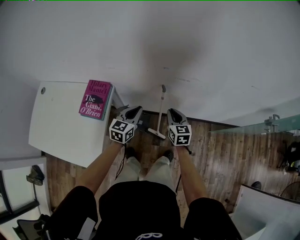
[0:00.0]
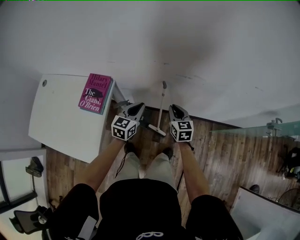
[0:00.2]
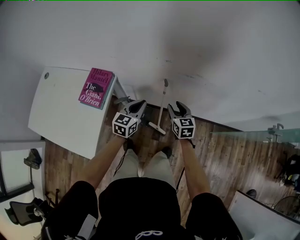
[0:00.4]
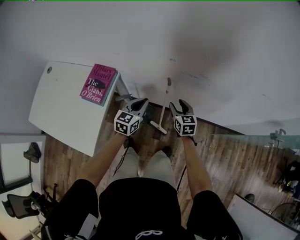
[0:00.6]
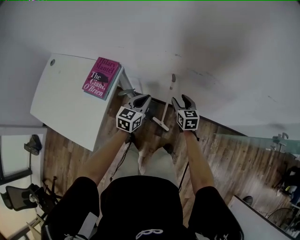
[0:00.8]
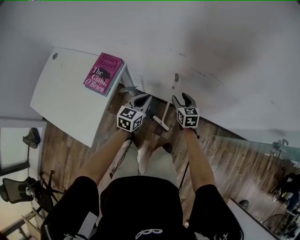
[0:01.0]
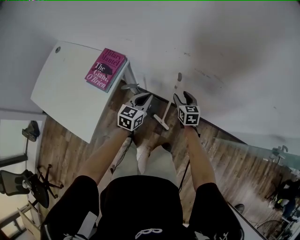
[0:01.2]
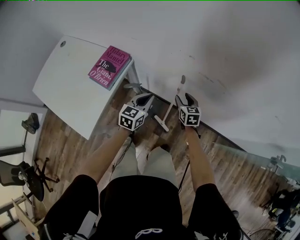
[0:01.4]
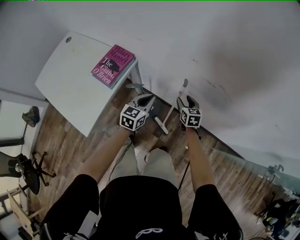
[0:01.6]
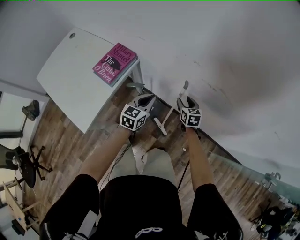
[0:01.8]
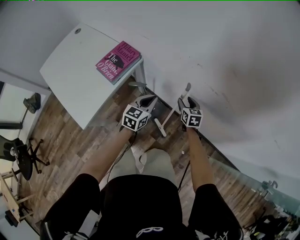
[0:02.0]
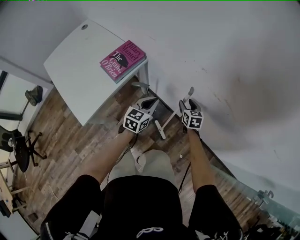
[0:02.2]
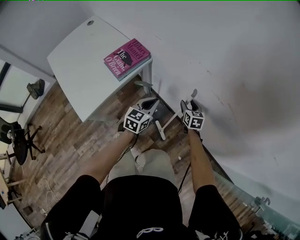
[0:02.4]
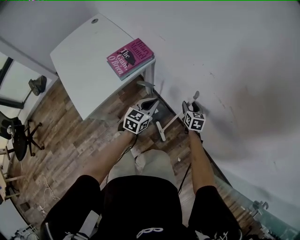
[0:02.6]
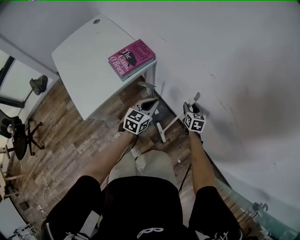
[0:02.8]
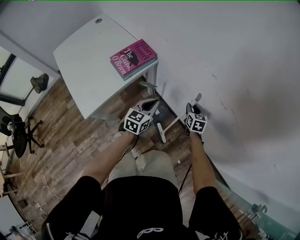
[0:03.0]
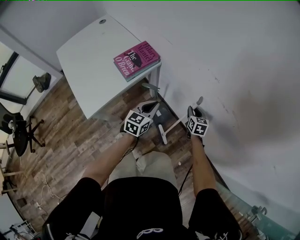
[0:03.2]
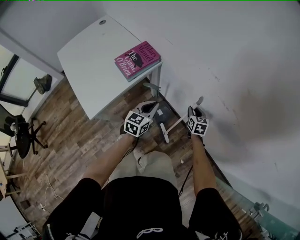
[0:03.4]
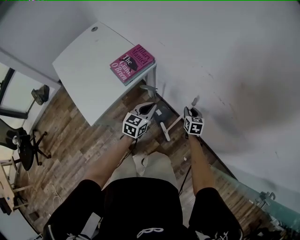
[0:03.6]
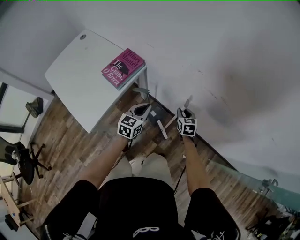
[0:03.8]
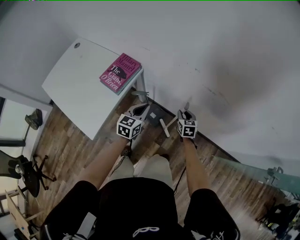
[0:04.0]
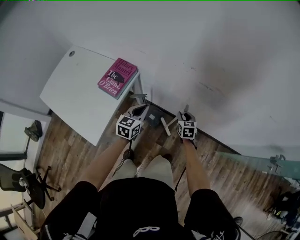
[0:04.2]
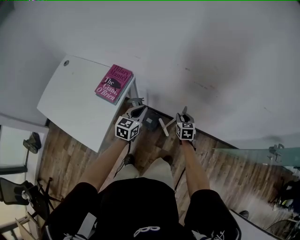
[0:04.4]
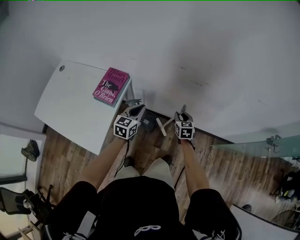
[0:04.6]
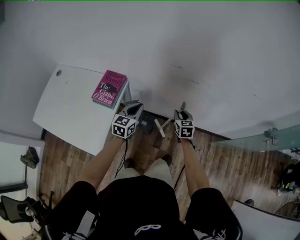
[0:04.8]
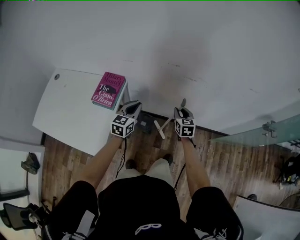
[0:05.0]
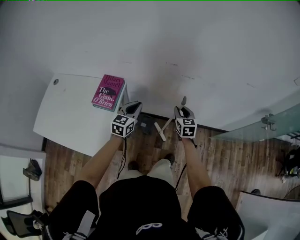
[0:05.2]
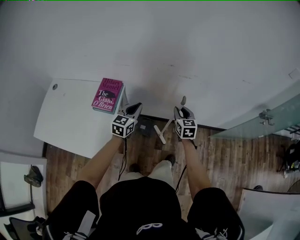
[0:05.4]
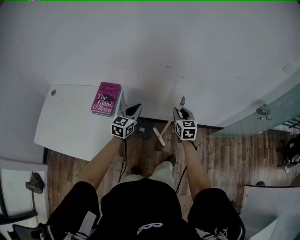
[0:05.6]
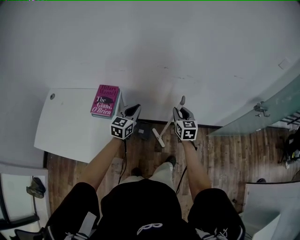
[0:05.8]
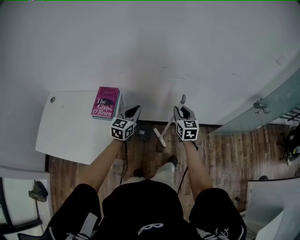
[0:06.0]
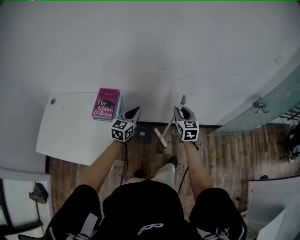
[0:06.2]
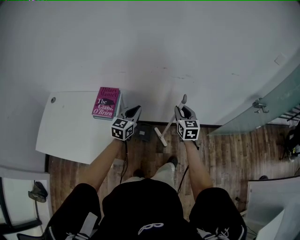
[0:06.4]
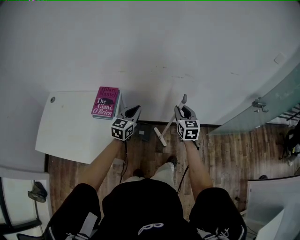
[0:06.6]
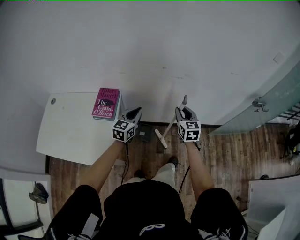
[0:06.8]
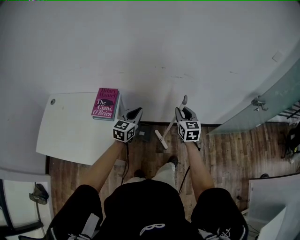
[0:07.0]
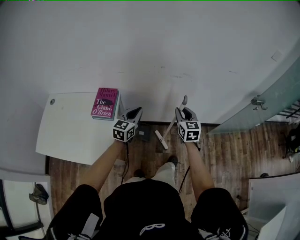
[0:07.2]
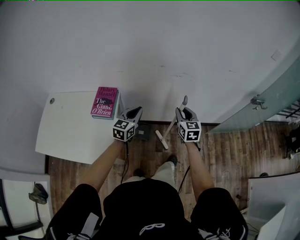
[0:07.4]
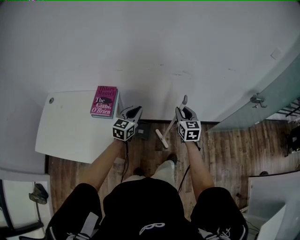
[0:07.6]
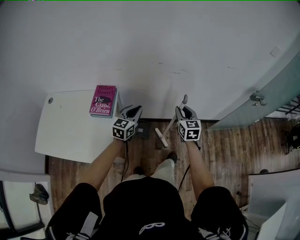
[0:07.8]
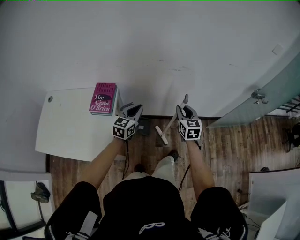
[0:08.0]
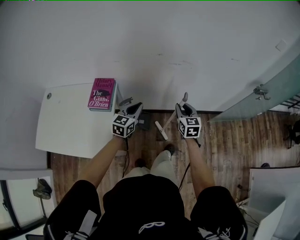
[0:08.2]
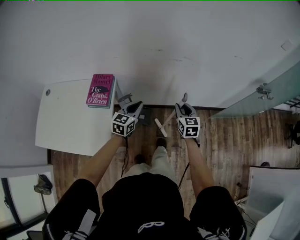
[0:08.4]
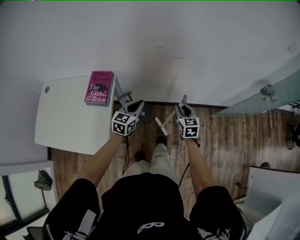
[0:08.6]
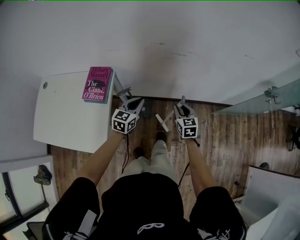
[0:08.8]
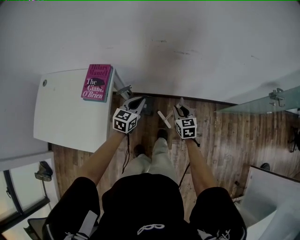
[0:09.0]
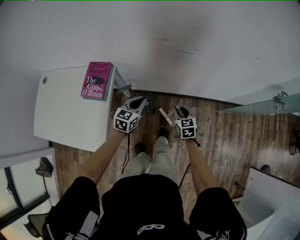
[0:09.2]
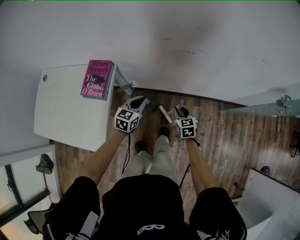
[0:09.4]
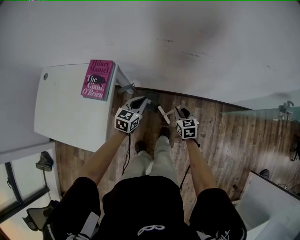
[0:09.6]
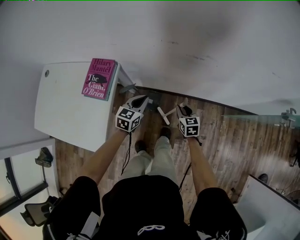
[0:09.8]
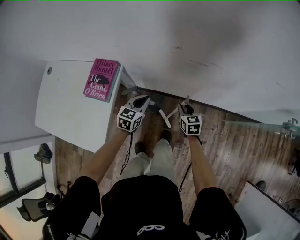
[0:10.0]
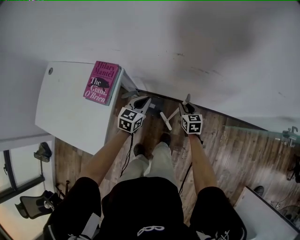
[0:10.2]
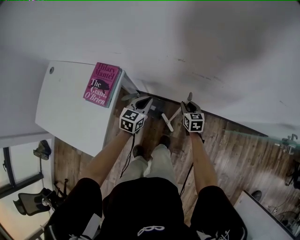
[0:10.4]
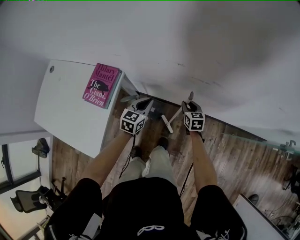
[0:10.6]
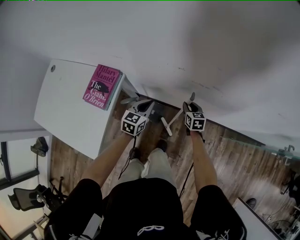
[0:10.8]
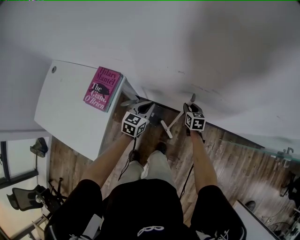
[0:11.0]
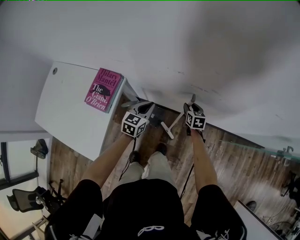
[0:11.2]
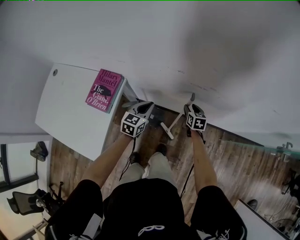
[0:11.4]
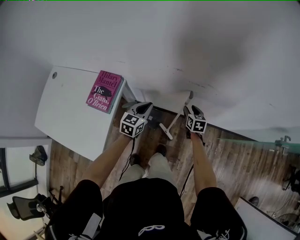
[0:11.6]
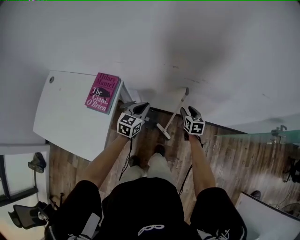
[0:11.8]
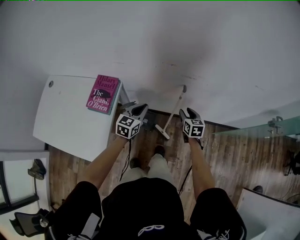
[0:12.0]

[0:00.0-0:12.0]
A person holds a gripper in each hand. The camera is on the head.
0:00.0 to 0:01.6: The right gripper heads downward and forward, covering about 15 cm, changes its angle by approximately 20 degrees, and opens its fingers, while the left gripper travels downward by about 5 cm.
0:01.6 to 0:03.0: The right gripper changes place by approximately 5 cm, and closes up.
0:03.0 to 0:04.4: The left gripper is displaced upward by roughly 10 cm, and turns by approximately 20 degrees, while the right gripper is displaced backward and upward by some 15 cm.
0:04.4 to 0:06.0: The left gripper is displaced upward by approximately 10 cm, and changes its angle by about 20 degrees. The right gripper travels upward and backward by some 25 cm, and changes its angle by roughly 20 degrees.
0:06.0 to 0:07.6: There are only small adjustments of the grippers.
0:07.6 to 0:09.0: The right gripper goes about 20 cm downward, while the left gripper is displaced downward and forward by about 15 cm.
0:09.0 to 0:10.4: The right gripper moves forward and downward, some 20 cm. Meanwhile the left gripper travels forward and downward by some 15 cm.
0:10.4 to 0:12.0: Both grippers move upward and backward, roughly 10 cm.

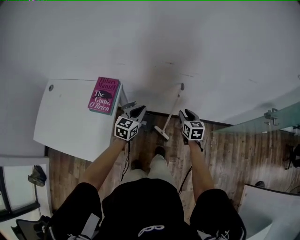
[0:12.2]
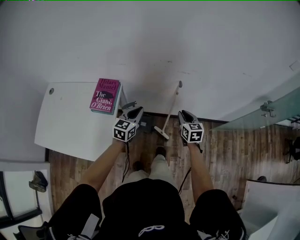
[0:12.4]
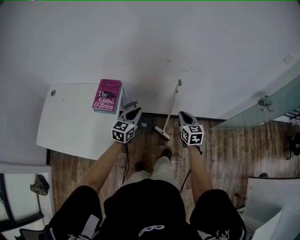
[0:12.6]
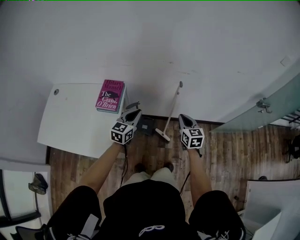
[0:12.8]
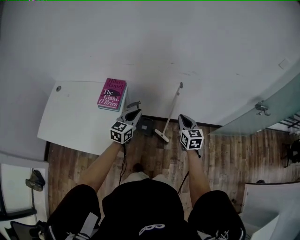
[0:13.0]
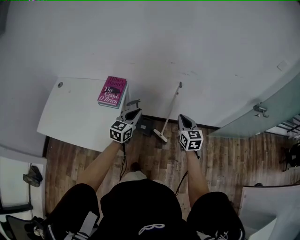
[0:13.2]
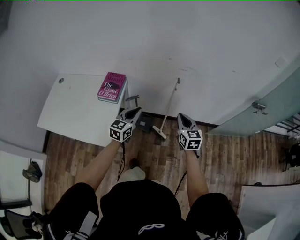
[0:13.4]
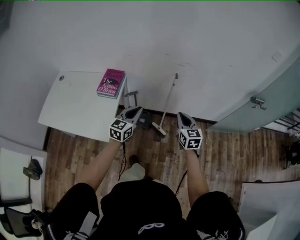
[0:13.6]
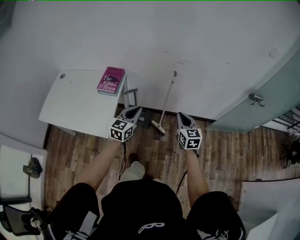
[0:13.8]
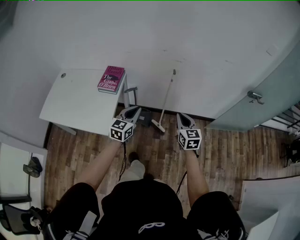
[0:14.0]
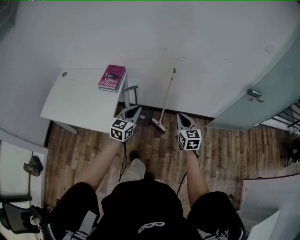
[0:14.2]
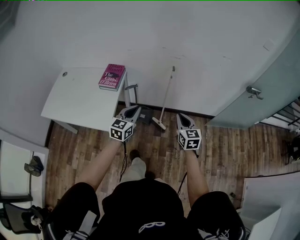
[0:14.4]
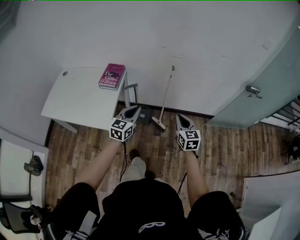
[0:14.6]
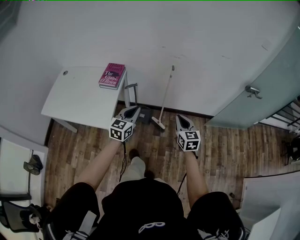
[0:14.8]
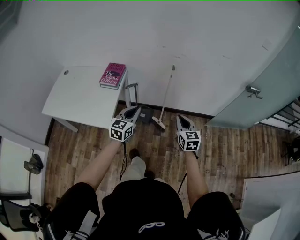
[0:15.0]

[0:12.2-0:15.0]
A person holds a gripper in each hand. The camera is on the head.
0:12.2 to 0:13.6: The two grippers go some 25 cm backward and upward. The right gripper closes up.
0:13.6 to 0:15.0: Both grippers move backward, about 10 cm.

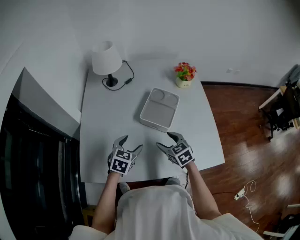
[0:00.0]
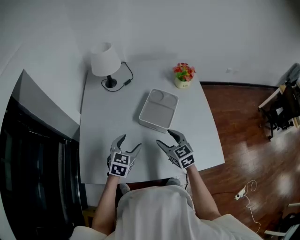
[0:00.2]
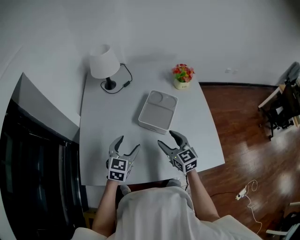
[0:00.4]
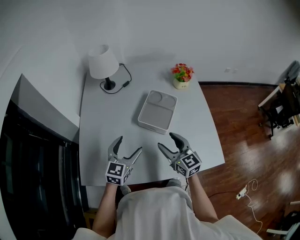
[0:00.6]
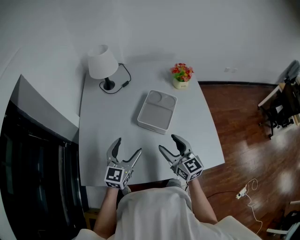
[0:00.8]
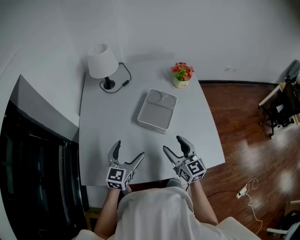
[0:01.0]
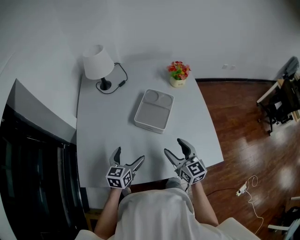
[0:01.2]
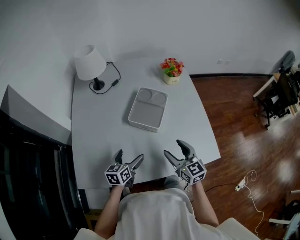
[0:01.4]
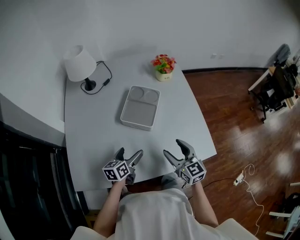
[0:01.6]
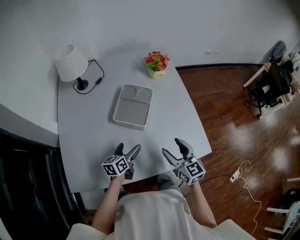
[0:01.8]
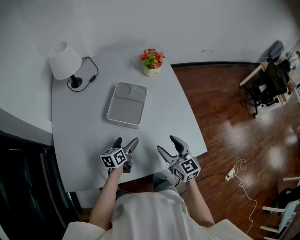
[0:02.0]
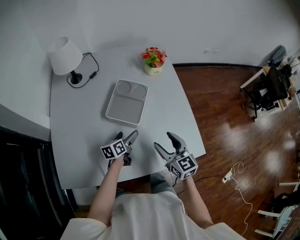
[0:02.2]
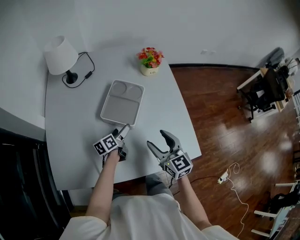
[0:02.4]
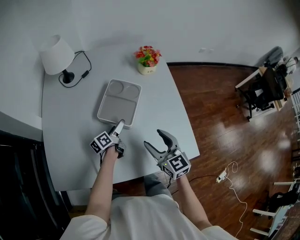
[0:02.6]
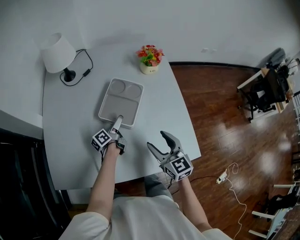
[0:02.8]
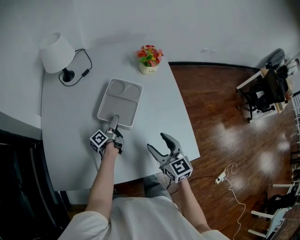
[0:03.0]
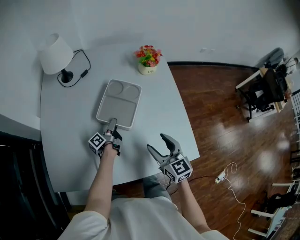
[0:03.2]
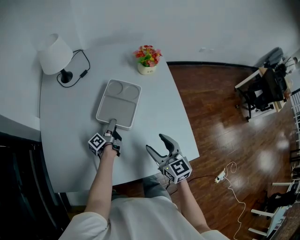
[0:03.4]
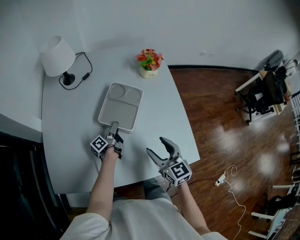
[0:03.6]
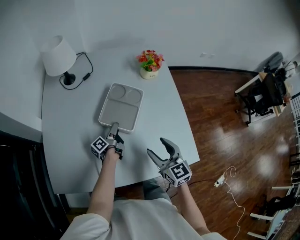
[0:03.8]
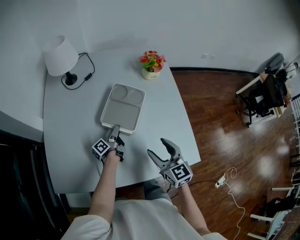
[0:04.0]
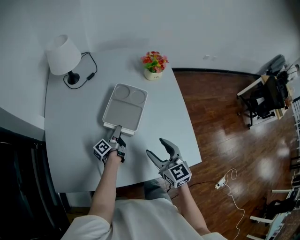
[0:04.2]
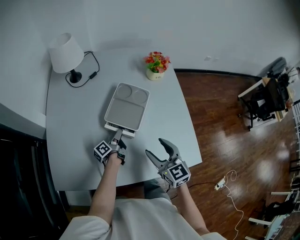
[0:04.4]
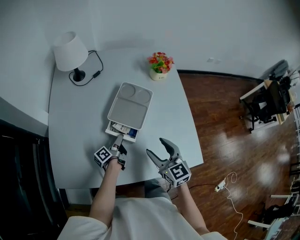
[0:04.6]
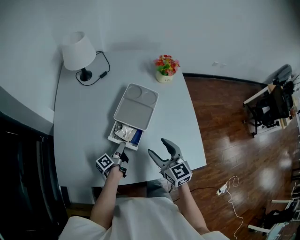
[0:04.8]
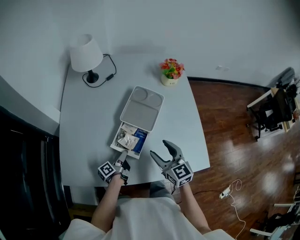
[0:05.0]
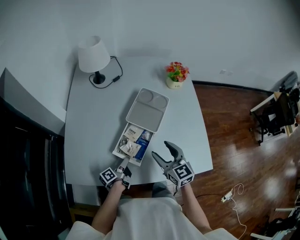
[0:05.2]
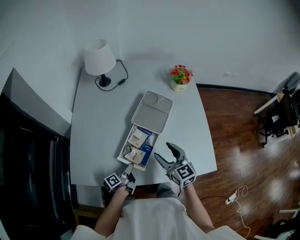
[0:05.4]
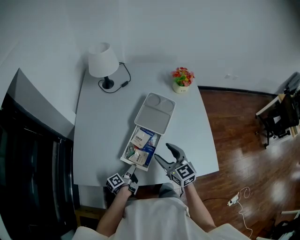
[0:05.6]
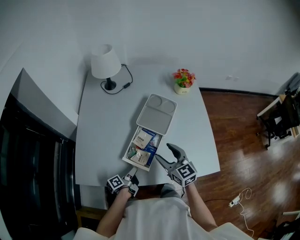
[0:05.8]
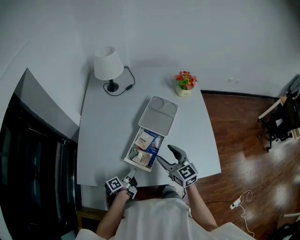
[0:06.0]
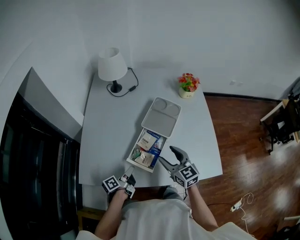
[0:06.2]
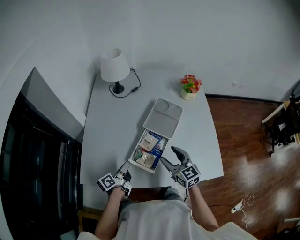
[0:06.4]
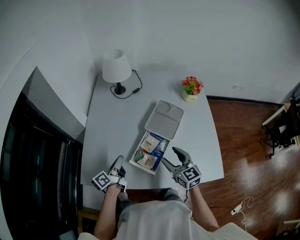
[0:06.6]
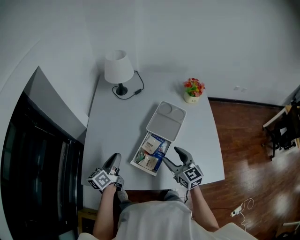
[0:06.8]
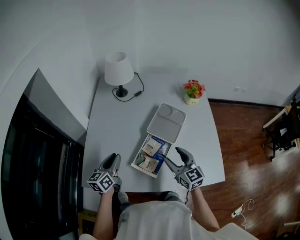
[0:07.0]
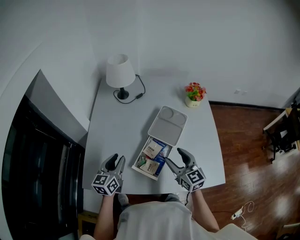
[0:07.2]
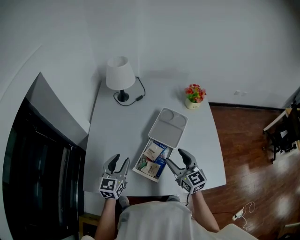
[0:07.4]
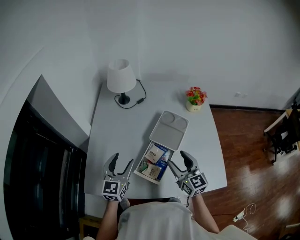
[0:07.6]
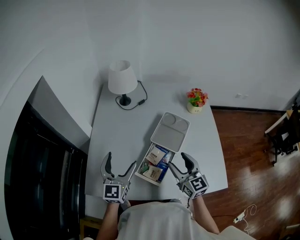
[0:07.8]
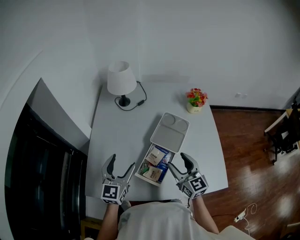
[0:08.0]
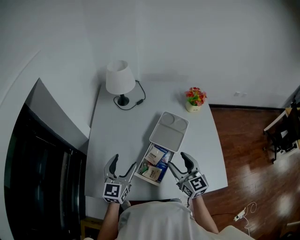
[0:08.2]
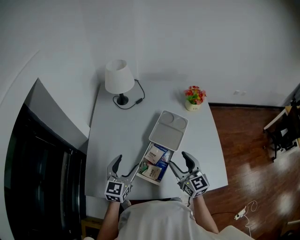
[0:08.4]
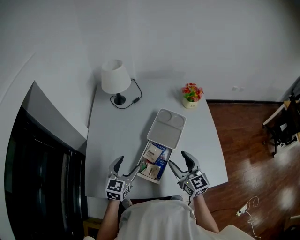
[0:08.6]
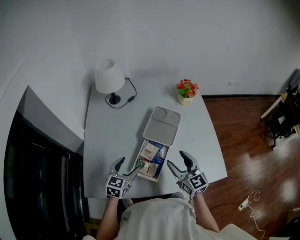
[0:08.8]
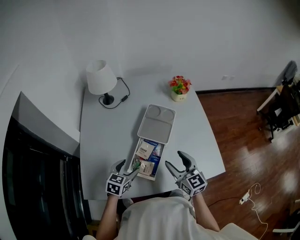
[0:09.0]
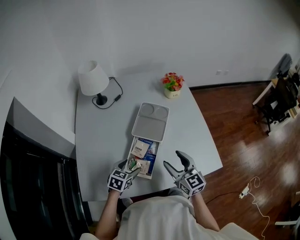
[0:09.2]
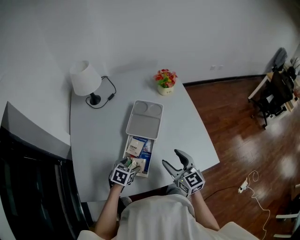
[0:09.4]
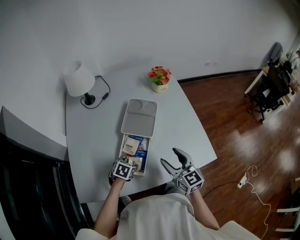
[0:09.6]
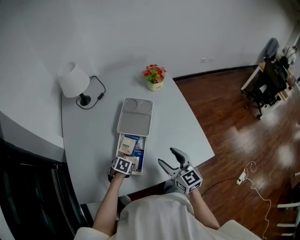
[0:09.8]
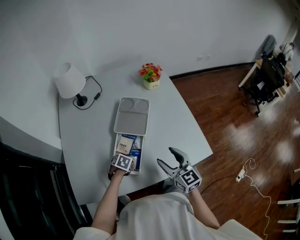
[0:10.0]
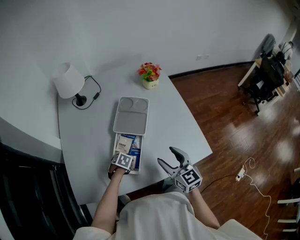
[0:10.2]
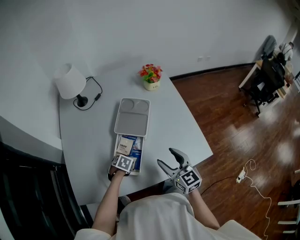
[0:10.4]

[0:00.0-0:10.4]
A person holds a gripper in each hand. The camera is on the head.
0:00.0 to 0:01.4: The right gripper is displaced to the right, backward and upward by approximately 10 cm, and turns by approximately 30 degrees. Meanwhile the left gripper goes upward and returns, about 10 cm each way, changes its angle by approximately 30 degrees, and opens its fingers.
0:01.4 to 0:03.0: The left gripper shifts roughly 20 cm forward, downward and to the right, and twists roughly 60 degrees counterclockwise, seen from behind, while the right gripper moves approximately 5 cm.
0:03.0 to 0:04.4: The left gripper closes.
0:04.4 to 0:06.0: The left gripper heads backward and to the left, covering approximately 20 cm, while the right gripper is displaced to the left by approximately 10 cm.
0:06.0 to 0:07.4: The left gripper moves upward and forward, some 25 cm, and rotates around the line of its fingers by about 80 degrees, clockwise from behind. The right gripper changes place by about 5 cm.
0:07.4 to 0:09.0: The left gripper travels downward and to the right by about 10 cm, and turns by about 30 degrees.
0:09.0 to 0:10.4: The right gripper ends up approximately 5 cm from where it was, while the left gripper goes some 15 cm downward, and angles its fingers downward, by approximately 40 degrees.
